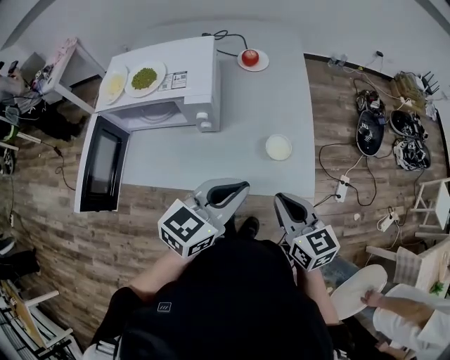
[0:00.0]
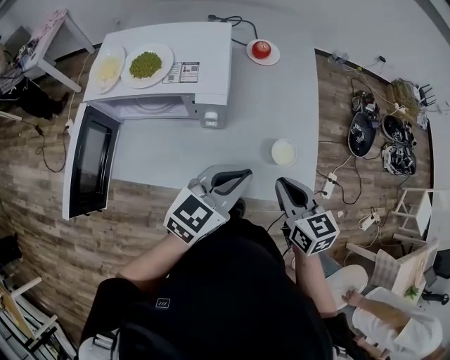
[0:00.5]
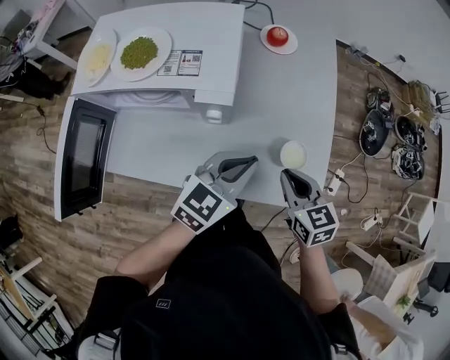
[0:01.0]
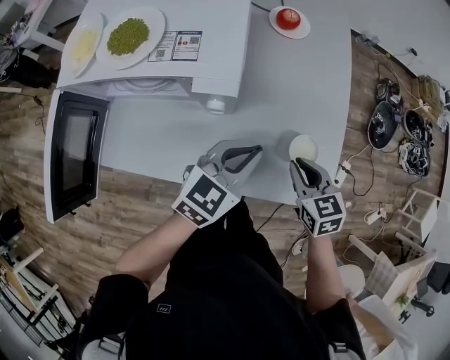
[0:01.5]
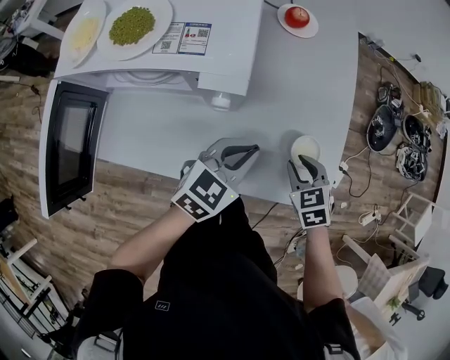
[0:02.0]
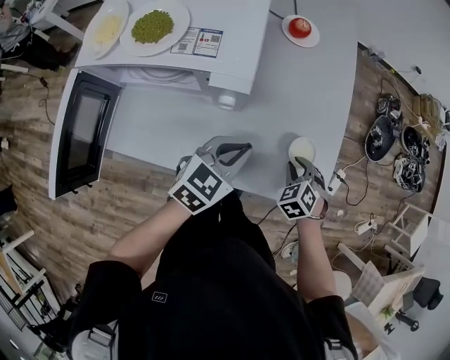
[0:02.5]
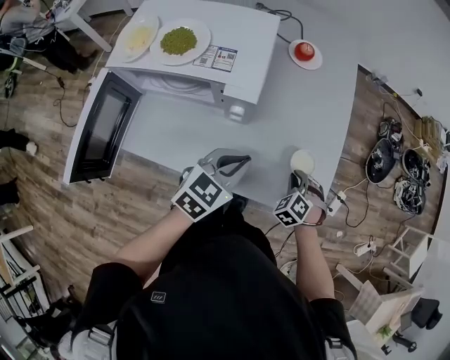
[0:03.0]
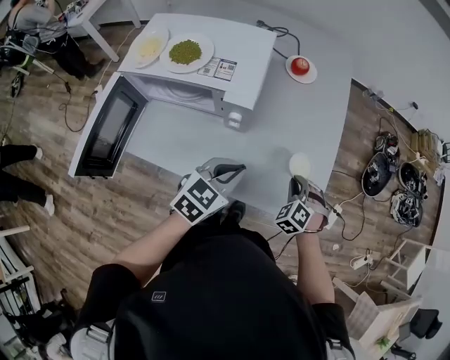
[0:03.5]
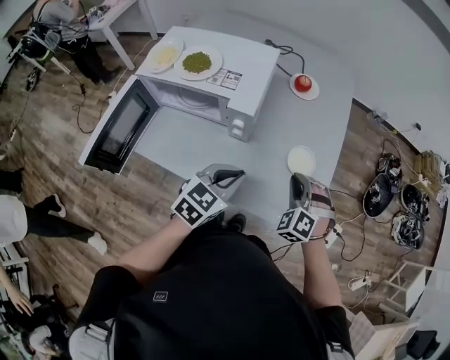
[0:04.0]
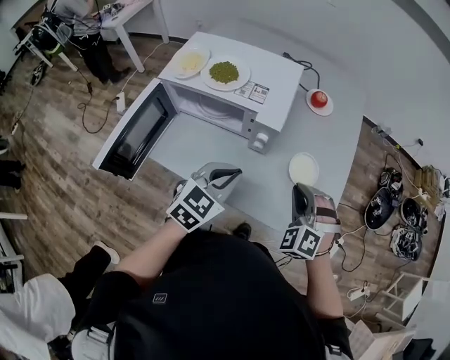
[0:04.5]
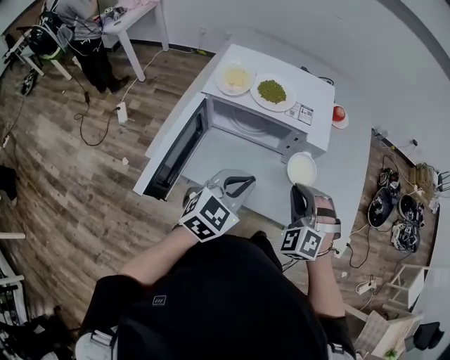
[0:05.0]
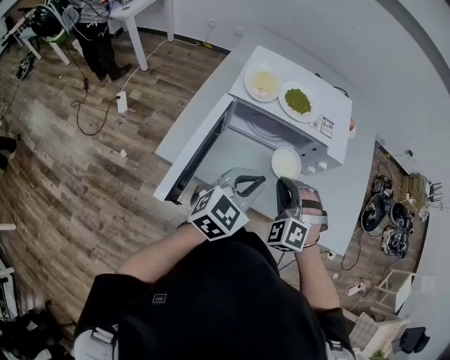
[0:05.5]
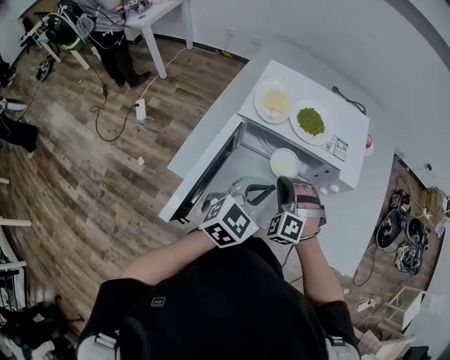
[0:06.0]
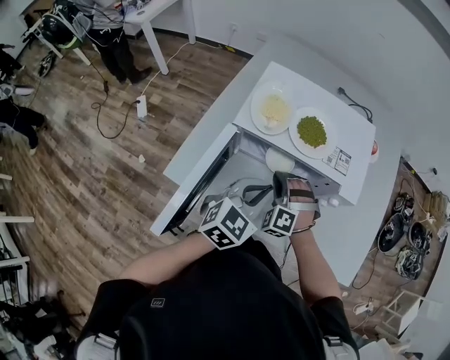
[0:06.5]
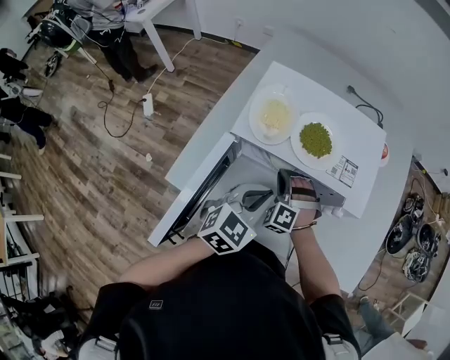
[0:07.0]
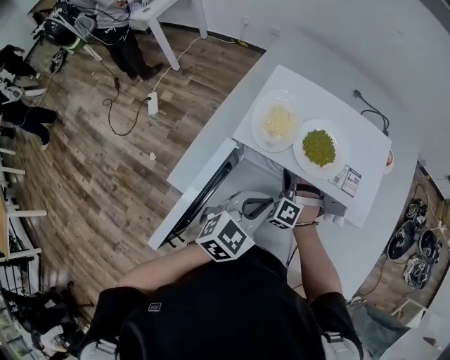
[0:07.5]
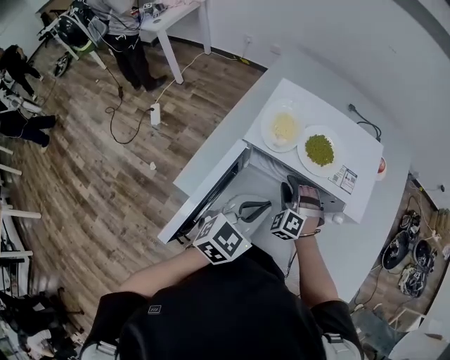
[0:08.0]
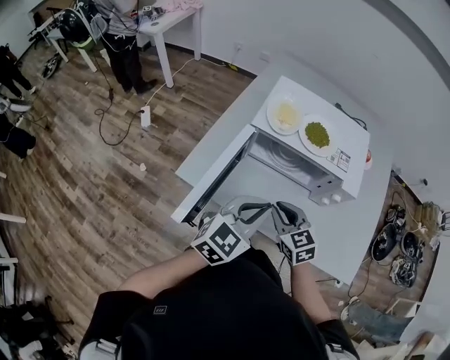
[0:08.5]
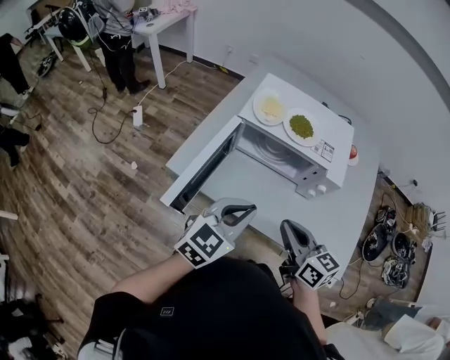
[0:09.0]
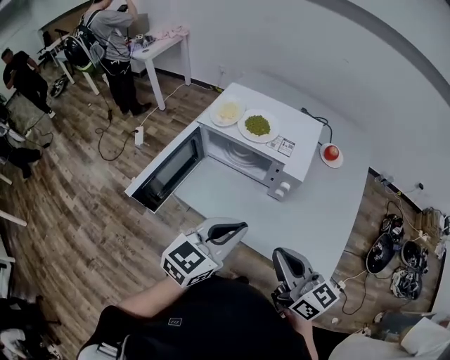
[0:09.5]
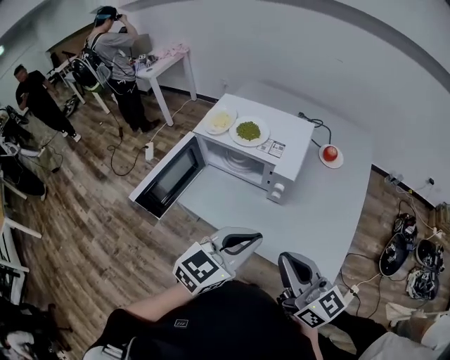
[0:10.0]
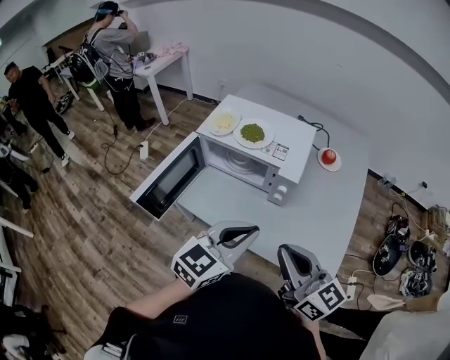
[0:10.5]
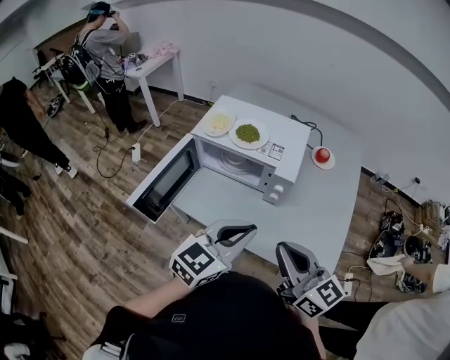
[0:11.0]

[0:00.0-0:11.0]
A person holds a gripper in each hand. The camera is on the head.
0:00.0 to 0:02.0: Both grippers travel together downward and forward, approximately 25 cm. The right gripper tips its fingers downward by about 40 degrees, and opens its fingers.
0:02.0 to 0:03.5: The right gripper rotates about 40 degrees, while the left gripper shifts some 10 cm upward and backward.
0:03.5 to 0:05.5: The grippers both shift to the left by approximately 35 cm. The right gripper swivels some 30 degrees.
0:05.5 to 0:07.5: The left gripper travels forward and downward by some 15 cm; the right gripper goes about 25 cm forward, downward and to the left.
0:07.5 to 0:09.0: The left gripper goes approximately 20 cm backward and upward, while the right gripper is displaced backward and upward by about 35 cm, rolls clockwise, seen from behind, by about 80 degrees, and opens, then closes once more.
0:09.0 to 0:11.0: The left gripper goes about 20 cm to the right, while the right gripper goes approximately 20 cm to the right, upward and backward.

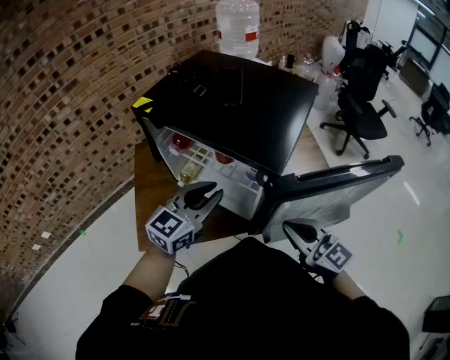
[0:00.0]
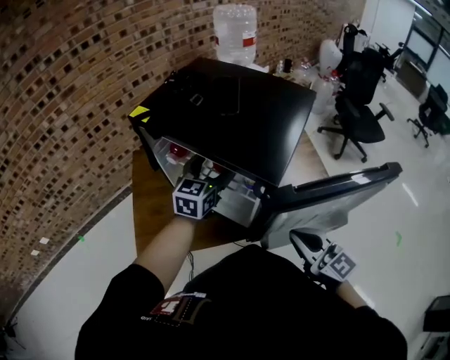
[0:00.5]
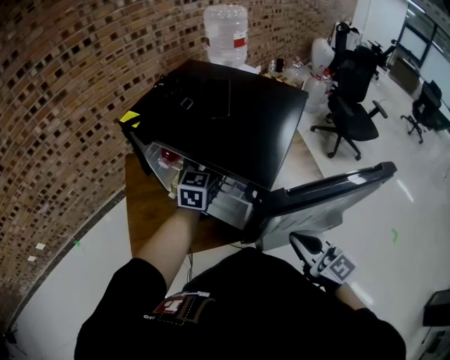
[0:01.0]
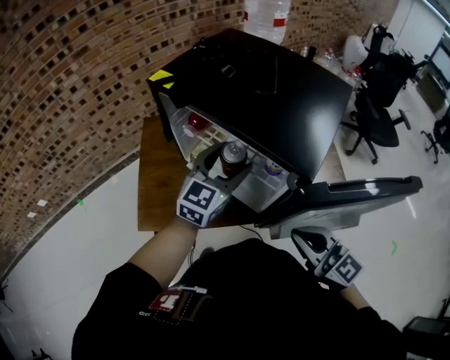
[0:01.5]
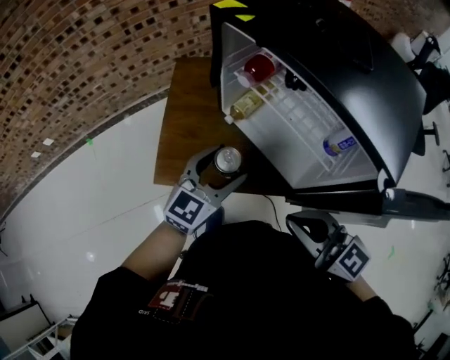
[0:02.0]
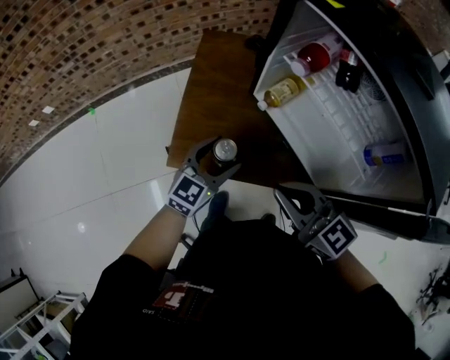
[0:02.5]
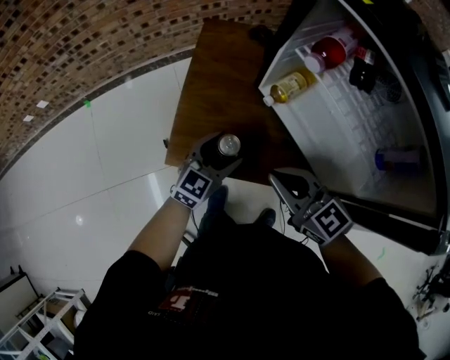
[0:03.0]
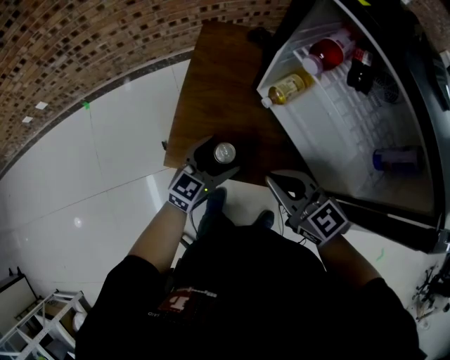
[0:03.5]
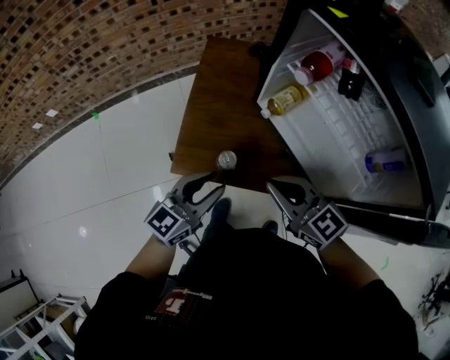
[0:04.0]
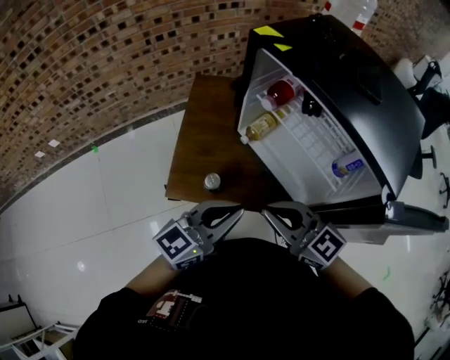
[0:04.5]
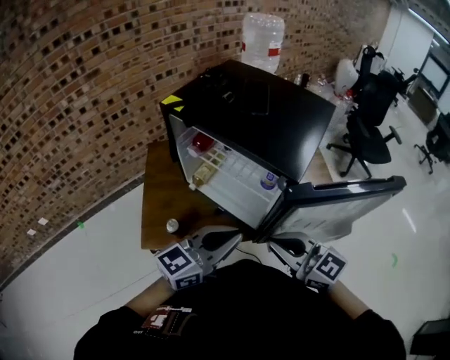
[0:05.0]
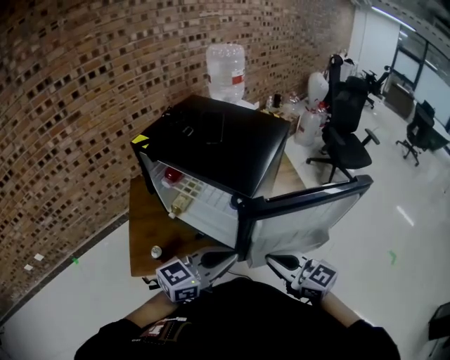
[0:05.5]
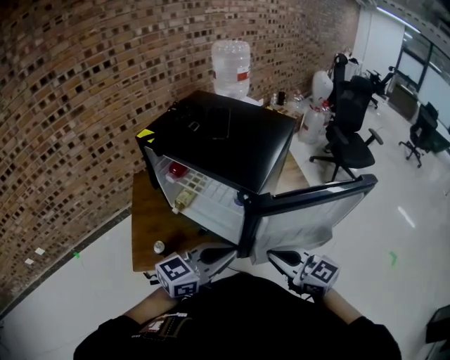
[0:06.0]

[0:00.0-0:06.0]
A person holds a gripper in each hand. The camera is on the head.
0:00.0 to 0:02.0: The right gripper heads to the left, covering roughly 15 cm, and turns by some 20 degrees; the left gripper heads to the left and downward, covering some 15 cm, and opens.
0:02.0 to 0:04.0: The left gripper goes some 15 cm to the left and downward, and closes its fingers, while the right gripper shifts some 20 cm downward, to the left and forward.
0:04.0 to 0:06.0: The right gripper moves some 35 cm, and turns by some 20 degrees, while the left gripper shifts by approximately 40 cm, changes its angle by some 40 degrees, and closes up.

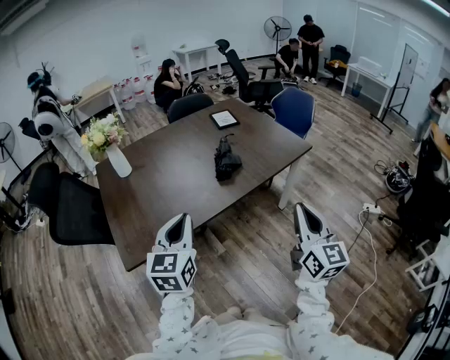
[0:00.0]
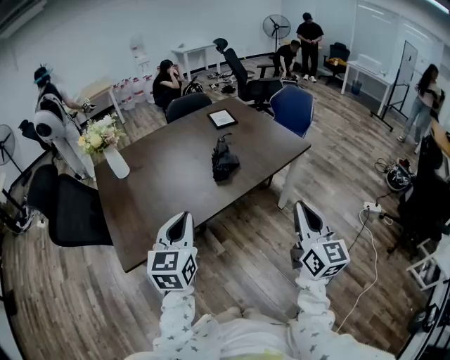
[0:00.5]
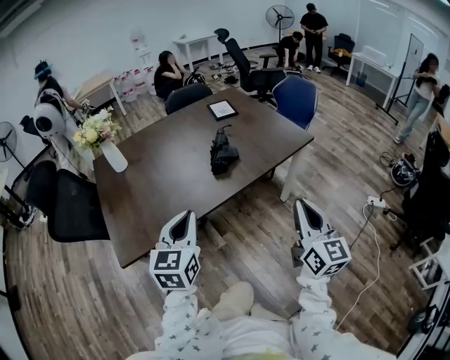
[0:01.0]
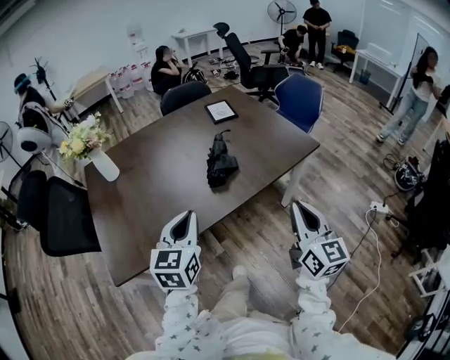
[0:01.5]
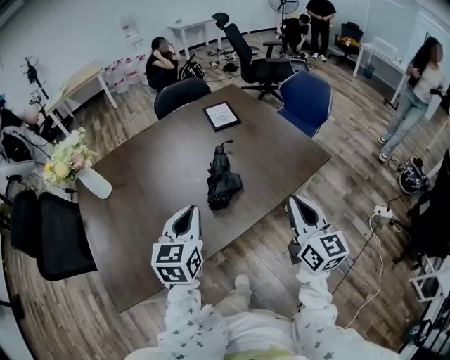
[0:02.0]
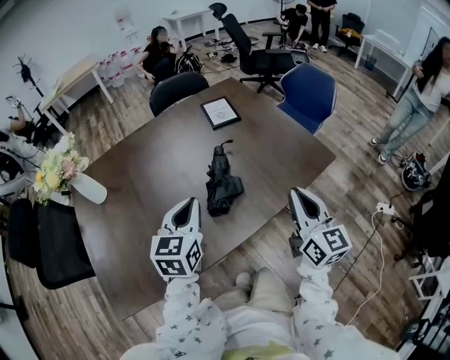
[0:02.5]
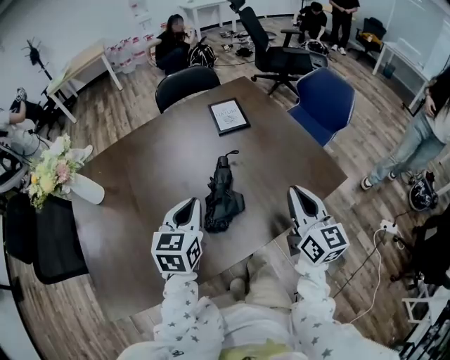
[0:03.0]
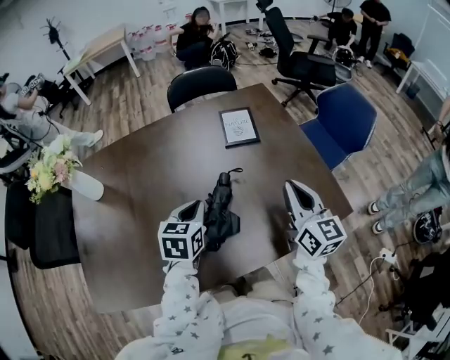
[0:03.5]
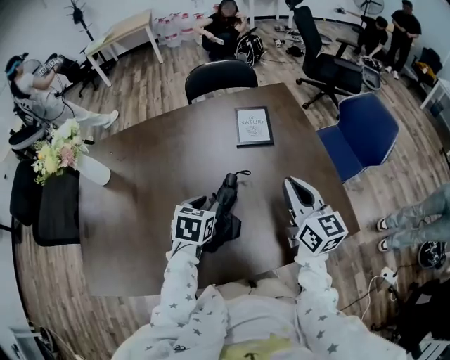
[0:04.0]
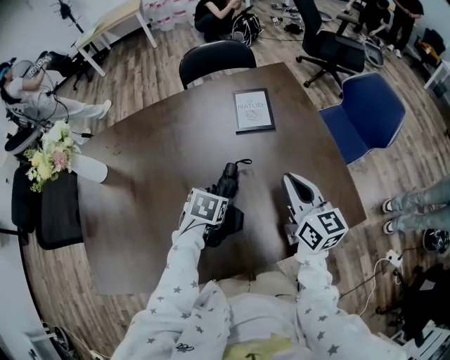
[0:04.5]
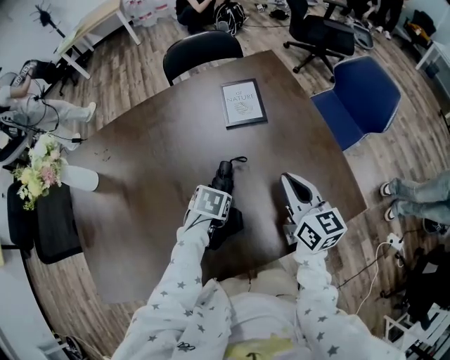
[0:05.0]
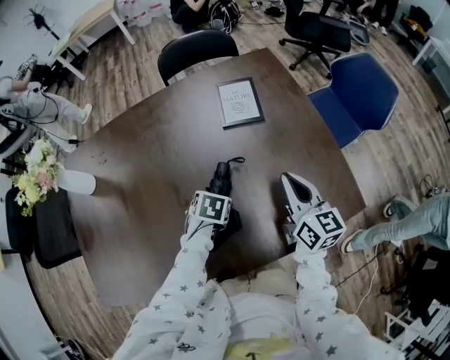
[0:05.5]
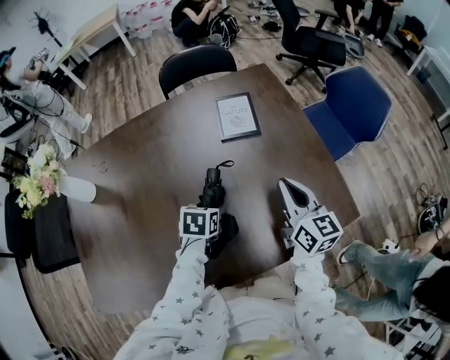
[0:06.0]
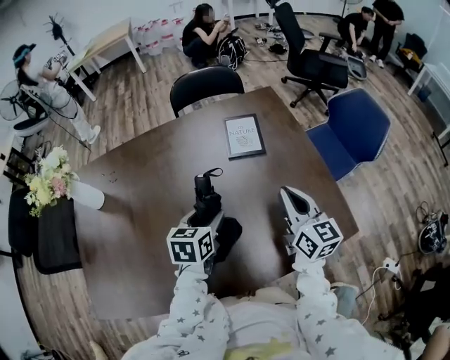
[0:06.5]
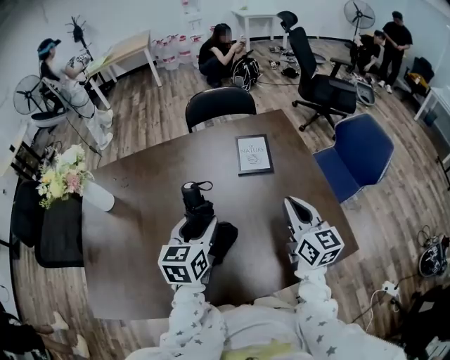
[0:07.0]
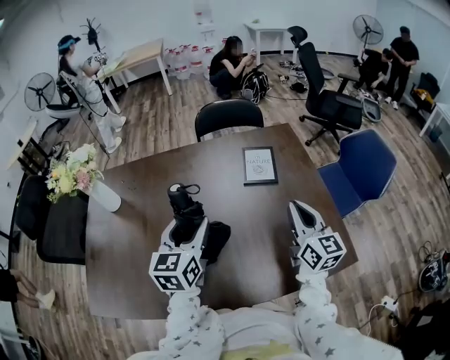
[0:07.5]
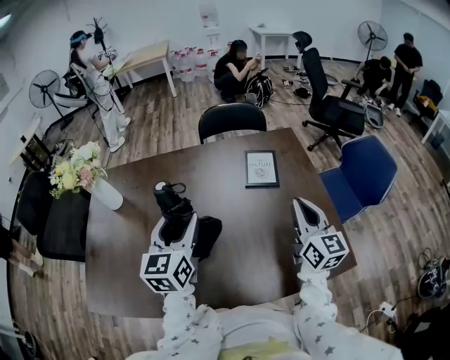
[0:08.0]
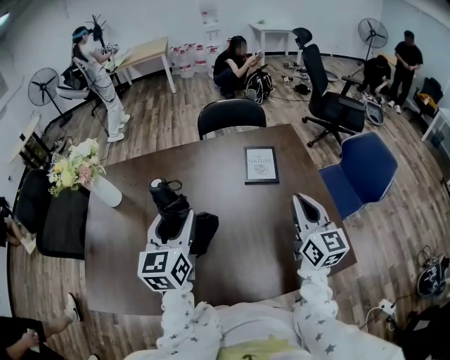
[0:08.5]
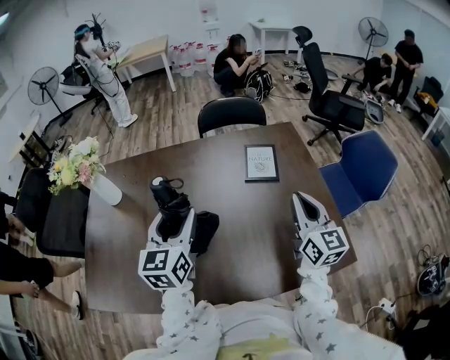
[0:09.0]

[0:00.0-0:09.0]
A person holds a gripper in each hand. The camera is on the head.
0:00.0 to 0:02.0: Both grippers travel together forward, about 25 cm.
0:02.0 to 0:04.5: The right gripper travels forward by some 30 cm, and turns by approximately 30 degrees. The left gripper shifts approximately 30 cm forward and downward, tips its fingers downward by roughly 50 degrees, and opens.
0:04.5 to 0:07.0: The left gripper travels upward by about 15 cm, and angles its fingers upward, by approximately 40 degrees.
0:07.0 to 0:09.0: The left gripper is displaced upward and to the left by roughly 10 cm, while the right gripper ends up about 5 cm from where it was.
